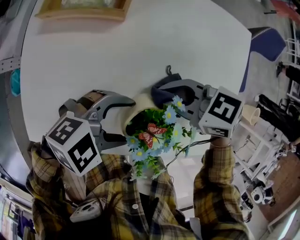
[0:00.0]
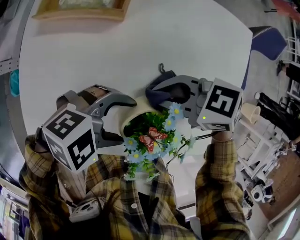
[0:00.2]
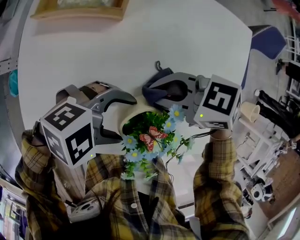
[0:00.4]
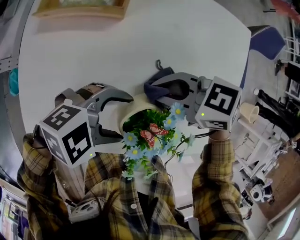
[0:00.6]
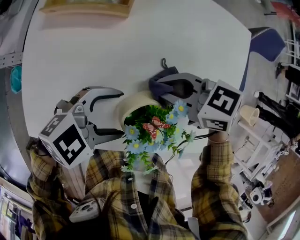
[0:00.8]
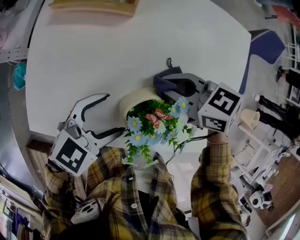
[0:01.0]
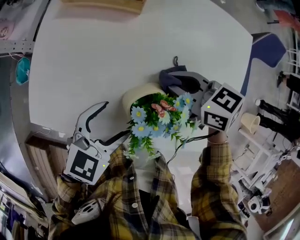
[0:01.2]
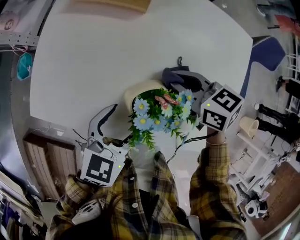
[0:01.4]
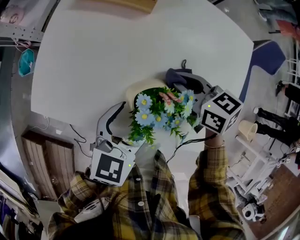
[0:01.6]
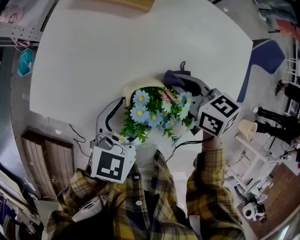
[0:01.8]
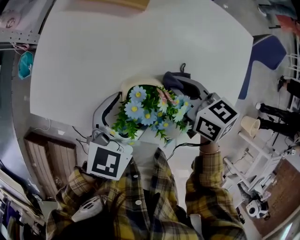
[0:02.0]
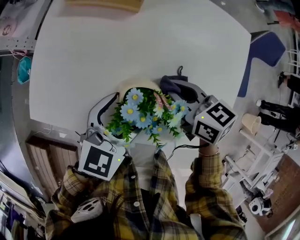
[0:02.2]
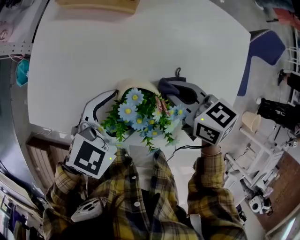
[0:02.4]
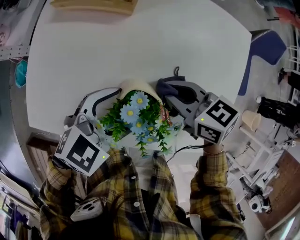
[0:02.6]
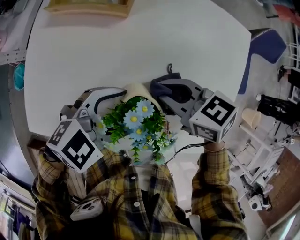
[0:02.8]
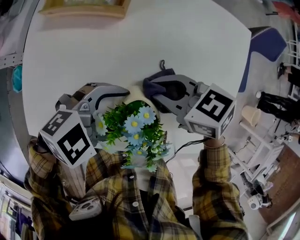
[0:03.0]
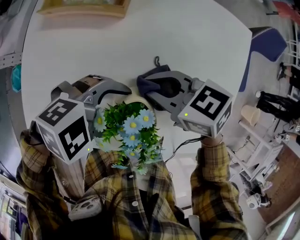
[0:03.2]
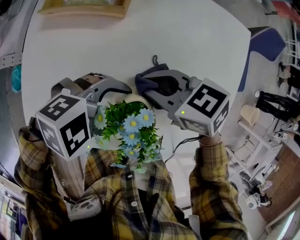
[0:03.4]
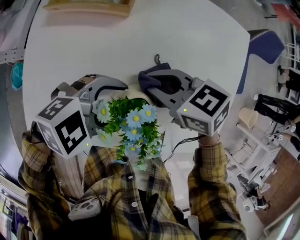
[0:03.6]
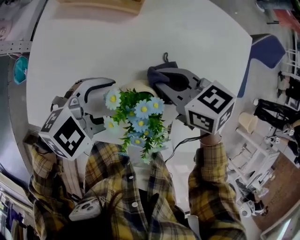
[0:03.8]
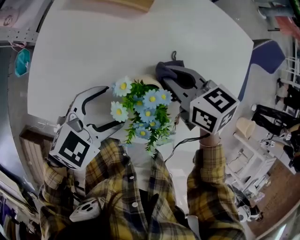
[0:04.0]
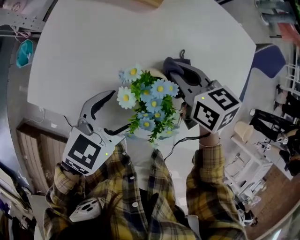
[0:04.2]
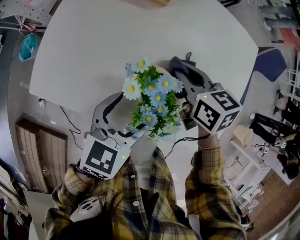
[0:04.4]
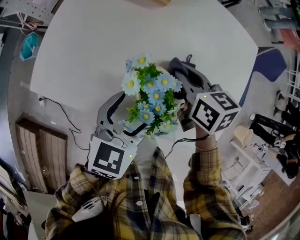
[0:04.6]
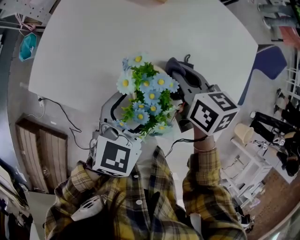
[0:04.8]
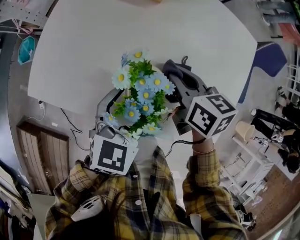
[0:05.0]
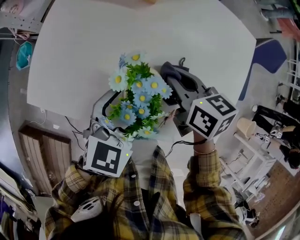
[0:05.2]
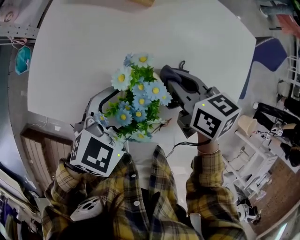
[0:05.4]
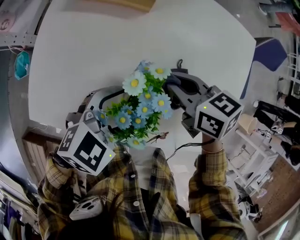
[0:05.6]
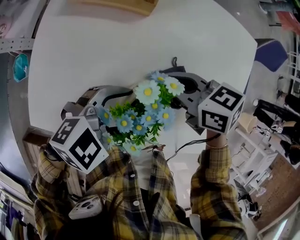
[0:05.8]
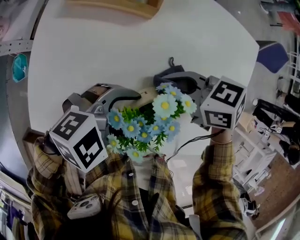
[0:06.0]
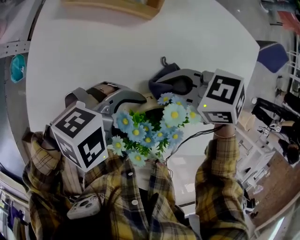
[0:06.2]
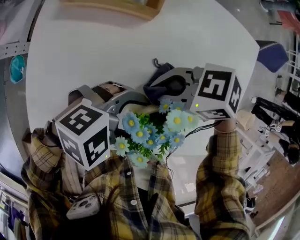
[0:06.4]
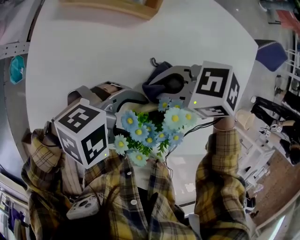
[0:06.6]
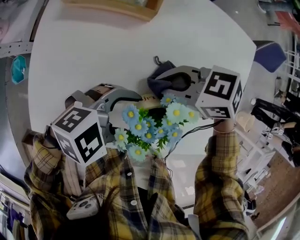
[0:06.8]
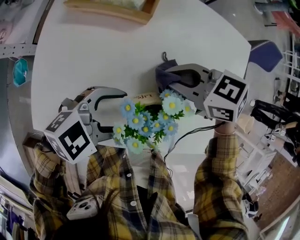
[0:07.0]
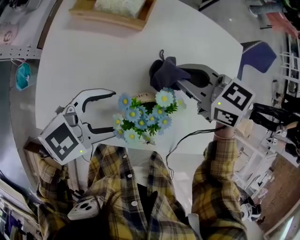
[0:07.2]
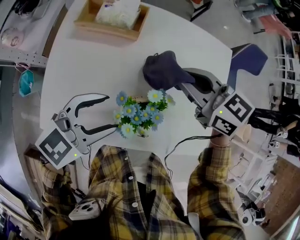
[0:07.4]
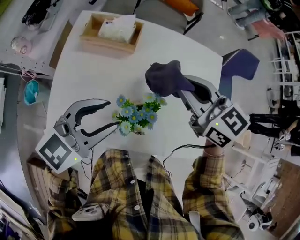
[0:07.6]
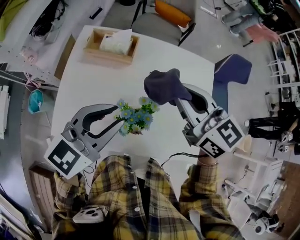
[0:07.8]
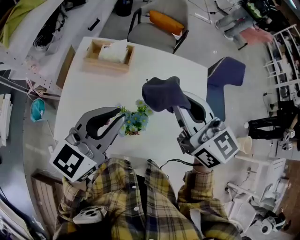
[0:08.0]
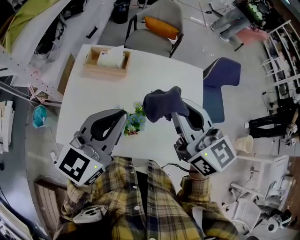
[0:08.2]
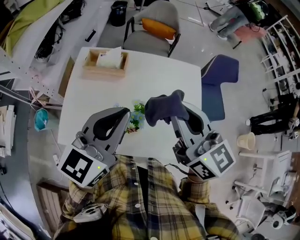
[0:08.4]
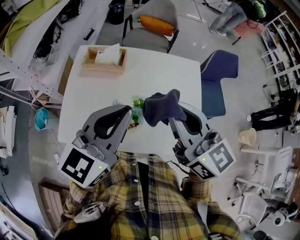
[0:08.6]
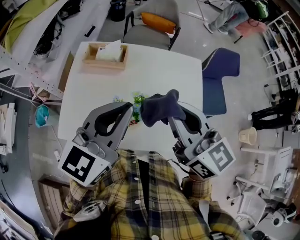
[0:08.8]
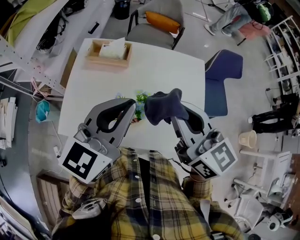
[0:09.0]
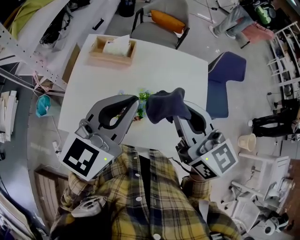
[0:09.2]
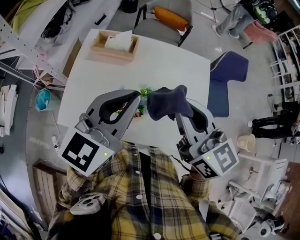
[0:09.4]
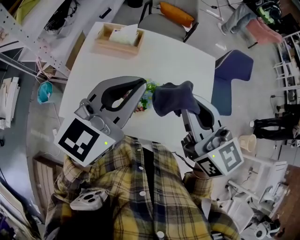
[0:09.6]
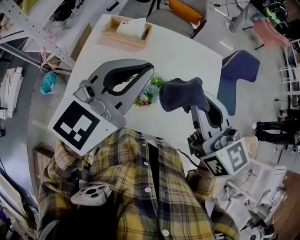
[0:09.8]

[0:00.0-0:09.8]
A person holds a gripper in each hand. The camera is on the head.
0:00.0 to 0:01.4: The left gripper swivels roughly 60 degrees.
0:01.4 to 0:02.8: The left gripper shifts by roughly 5 cm, and turns by approximately 40 degrees.
0:02.8 to 0:04.2: The left gripper moves roughly 5 cm, and rotates approximately 40 degrees.
0:04.2 to 0:05.6: The left gripper swivels roughly 30 degrees.
0:05.6 to 0:07.0: The right gripper rotates some 30 degrees.
0:07.0 to 0:08.4: Both grippers travel together upward, some 30 cm. The left gripper changes its angle by some 50 degrees, and closes up, while the right gripper tips its fingers upward by roughly 40 degrees.
0:08.4 to 0:09.8: The grippers stay close to where they were, moving slightly.

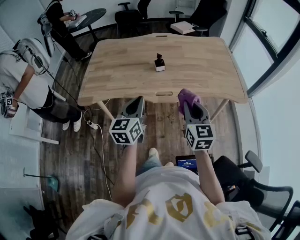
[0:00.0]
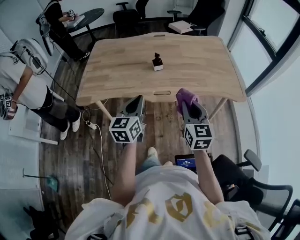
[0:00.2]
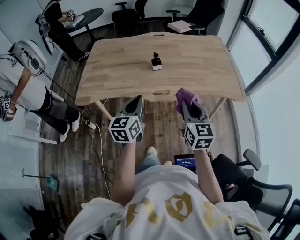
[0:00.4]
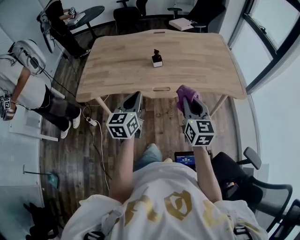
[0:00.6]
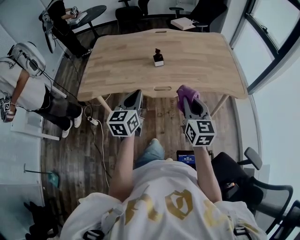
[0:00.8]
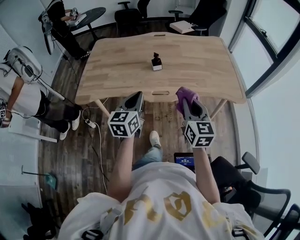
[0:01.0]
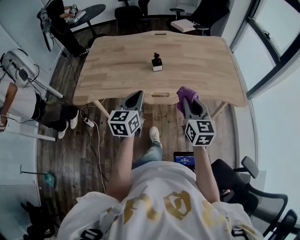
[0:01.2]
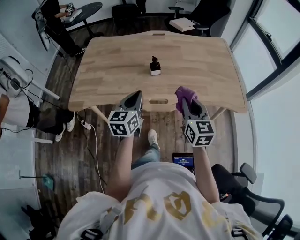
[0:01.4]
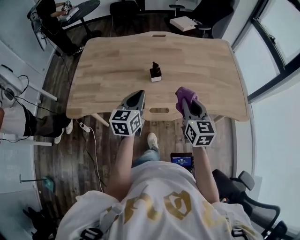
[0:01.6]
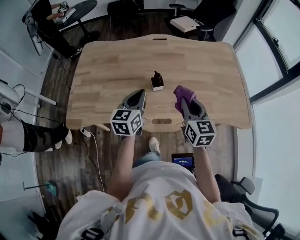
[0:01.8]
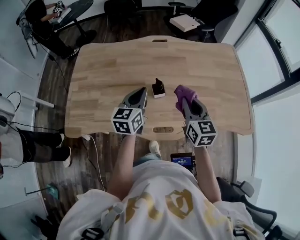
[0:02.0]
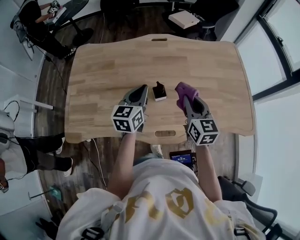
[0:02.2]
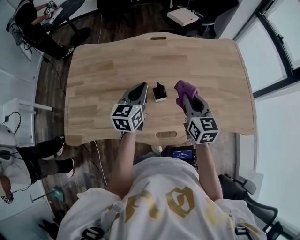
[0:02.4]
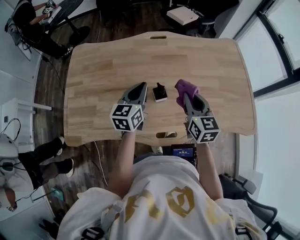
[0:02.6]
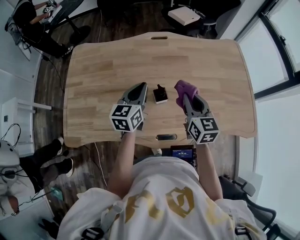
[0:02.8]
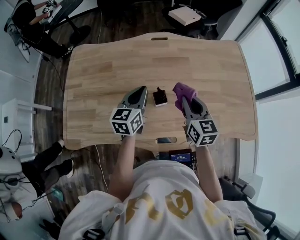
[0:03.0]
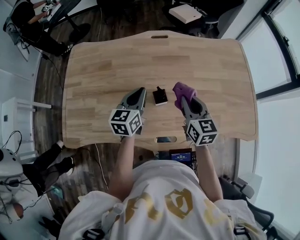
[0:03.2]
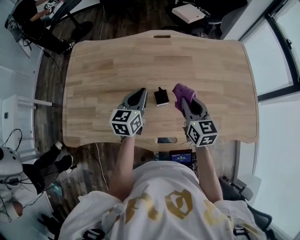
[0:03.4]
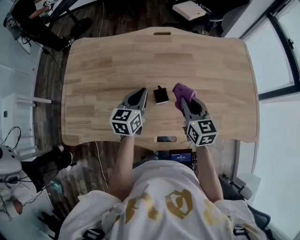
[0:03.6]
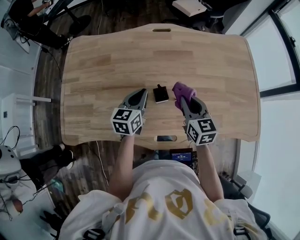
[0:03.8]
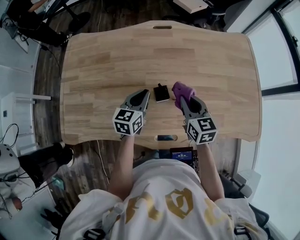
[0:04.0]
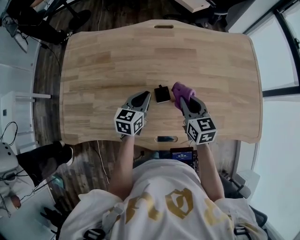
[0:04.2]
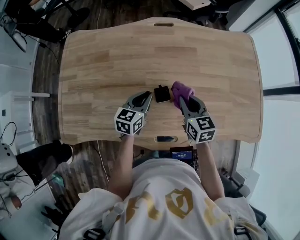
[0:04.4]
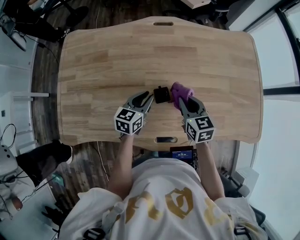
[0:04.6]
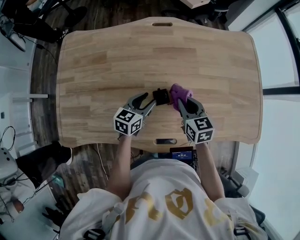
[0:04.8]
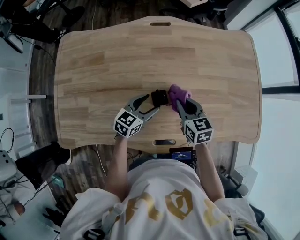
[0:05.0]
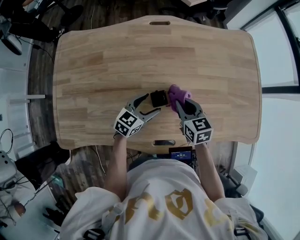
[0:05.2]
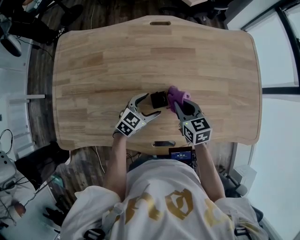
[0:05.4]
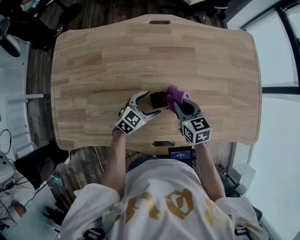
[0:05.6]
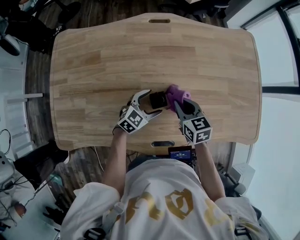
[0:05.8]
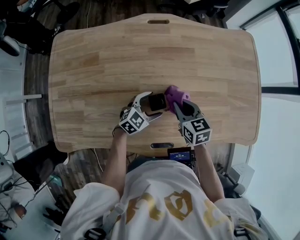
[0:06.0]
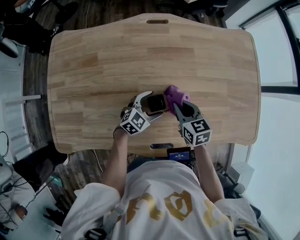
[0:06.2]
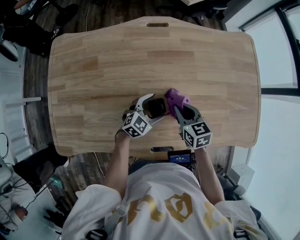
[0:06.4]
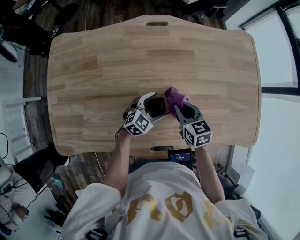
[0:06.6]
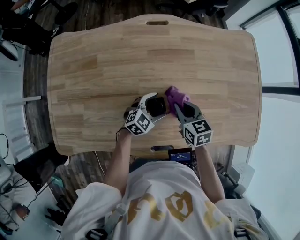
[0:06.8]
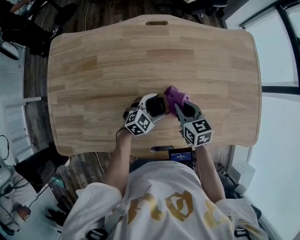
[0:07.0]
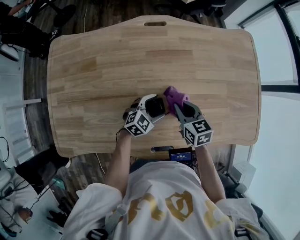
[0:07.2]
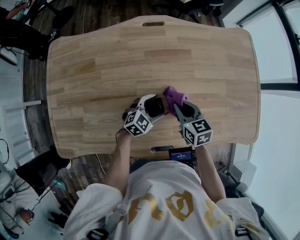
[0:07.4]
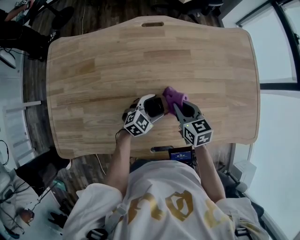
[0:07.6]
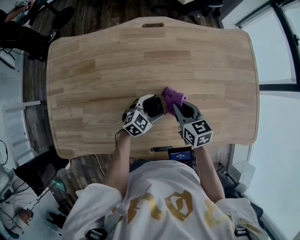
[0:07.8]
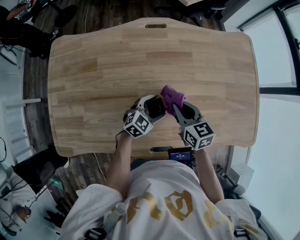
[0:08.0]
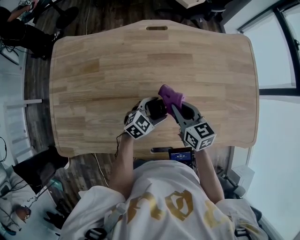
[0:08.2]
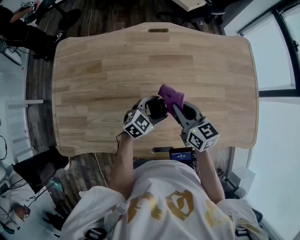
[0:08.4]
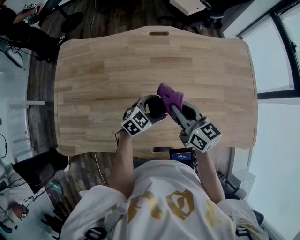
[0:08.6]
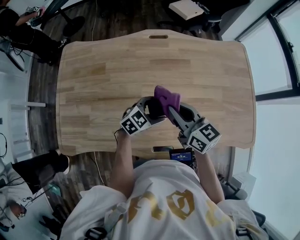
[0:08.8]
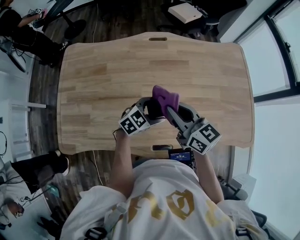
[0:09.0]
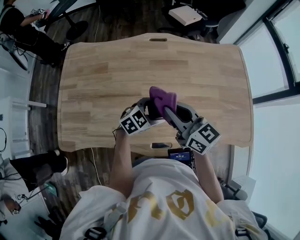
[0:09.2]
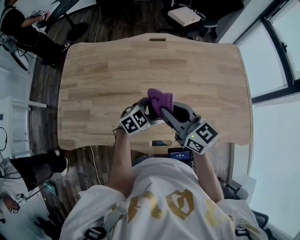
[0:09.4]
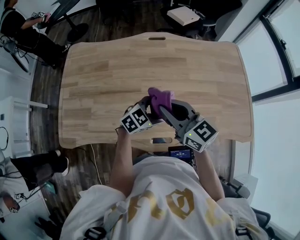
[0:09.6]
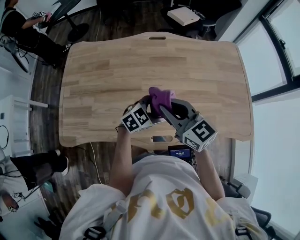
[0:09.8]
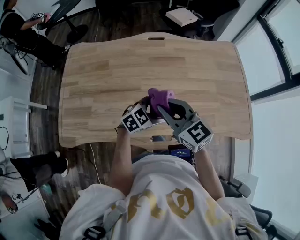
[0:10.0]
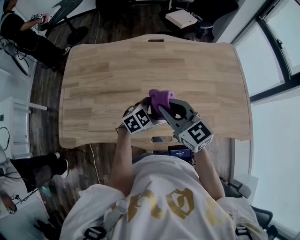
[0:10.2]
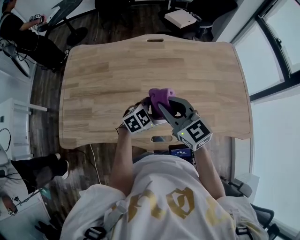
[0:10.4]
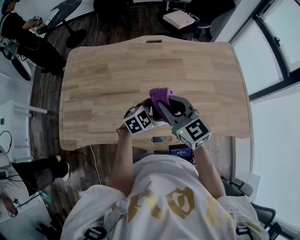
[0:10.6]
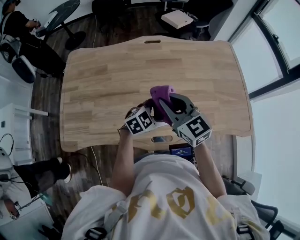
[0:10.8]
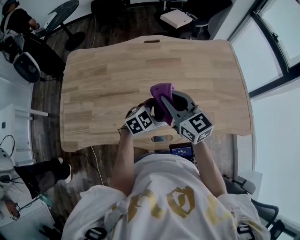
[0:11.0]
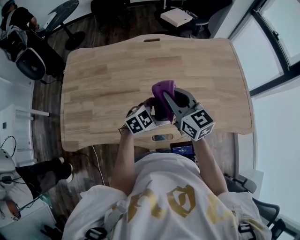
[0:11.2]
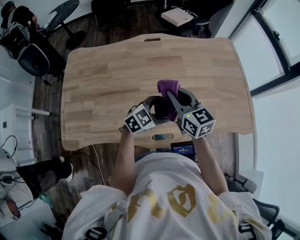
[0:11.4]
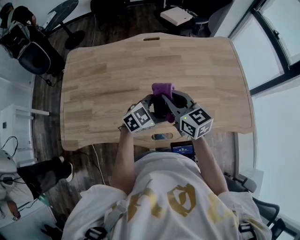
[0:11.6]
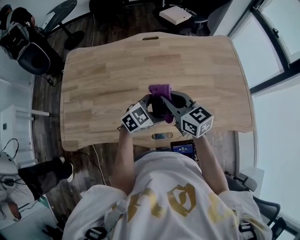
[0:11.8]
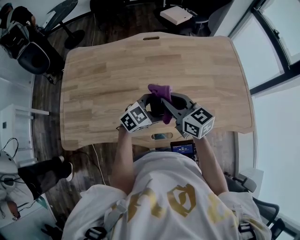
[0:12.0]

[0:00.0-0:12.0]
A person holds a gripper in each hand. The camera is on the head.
0:00.0 to 0:01.6: Both grippers move forward, roughly 20 cm.
0:01.6 to 0:03.0: The grippers both shift forward by approximately 20 cm.
0:03.0 to 0:04.4: The two grippers go approximately 10 cm downward.
0:04.4 to 0:06.0: The right gripper heads downward, covering approximately 5 cm; the left gripper shifts about 10 cm downward and to the right, turns by some 40 degrees, and opens up.
0:06.0 to 0:07.6: The grippers make only small movements.
0:07.6 to 0:09.0: The grippers both shift upward by approximately 15 cm. The right gripper swivels roughly 30 degrees.
0:09.0 to 0:10.4: Both grippers move backward, about 5 cm. The right gripper changes its angle by about 20 degrees.

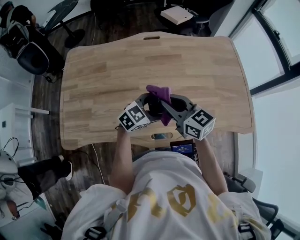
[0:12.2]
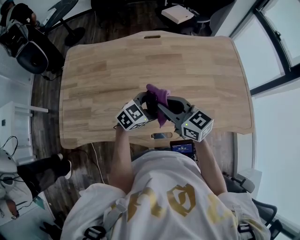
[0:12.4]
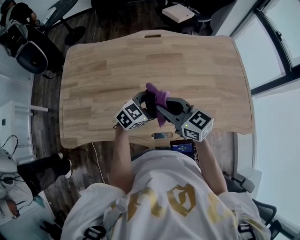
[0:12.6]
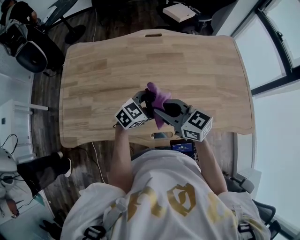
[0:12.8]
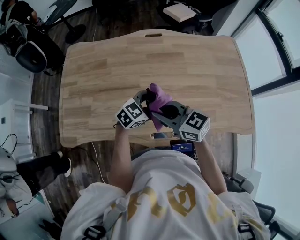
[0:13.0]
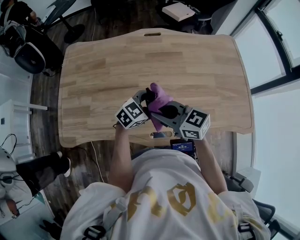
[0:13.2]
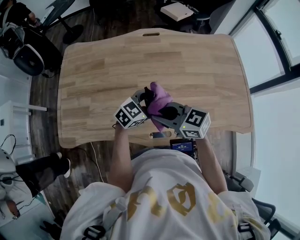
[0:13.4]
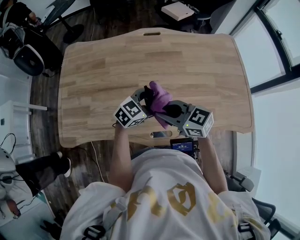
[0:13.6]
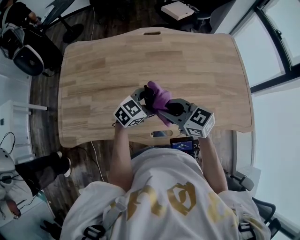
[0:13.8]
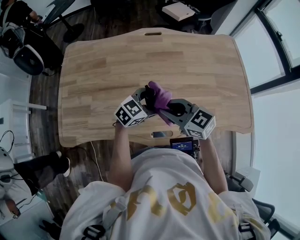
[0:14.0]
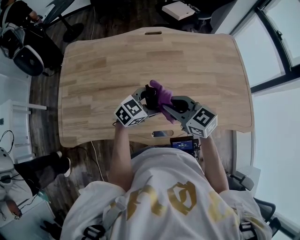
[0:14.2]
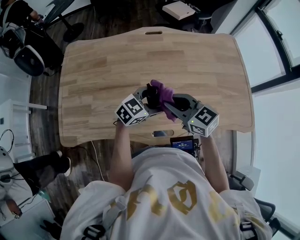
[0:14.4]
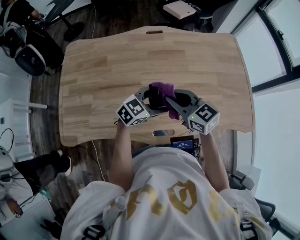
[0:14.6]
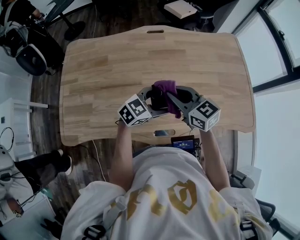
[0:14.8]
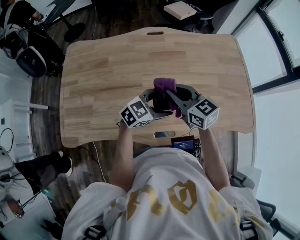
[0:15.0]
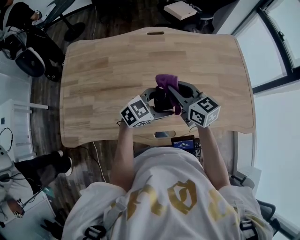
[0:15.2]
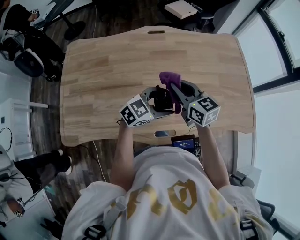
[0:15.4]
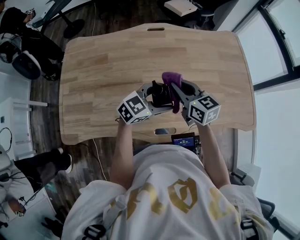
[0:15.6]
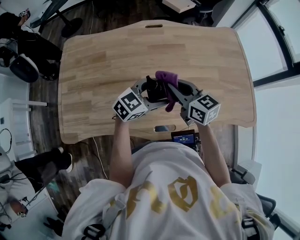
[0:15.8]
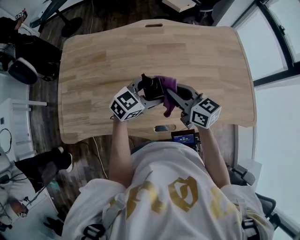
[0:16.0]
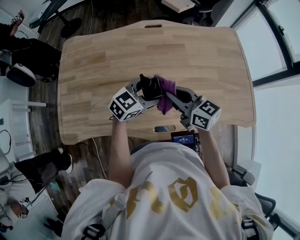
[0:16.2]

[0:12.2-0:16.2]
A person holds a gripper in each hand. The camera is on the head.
0:12.2 to 0:13.6: The right gripper moves approximately 5 cm, and turns by approximately 20 degrees.
0:13.6 to 0:14.8: The right gripper moves about 10 cm.
0:14.8 to 0:16.2: The grippers move only a little.
